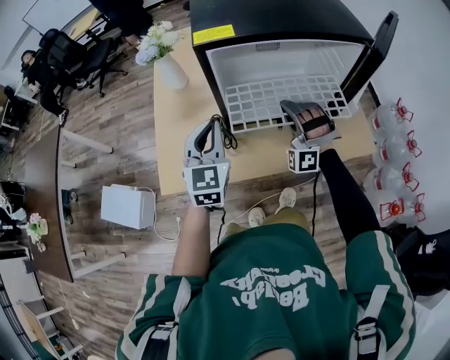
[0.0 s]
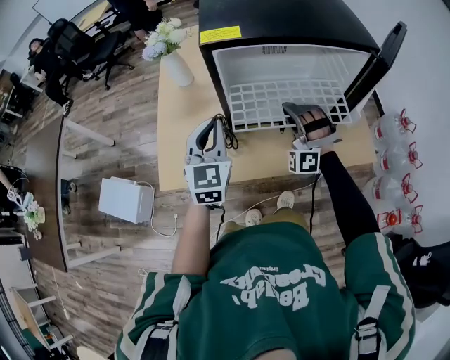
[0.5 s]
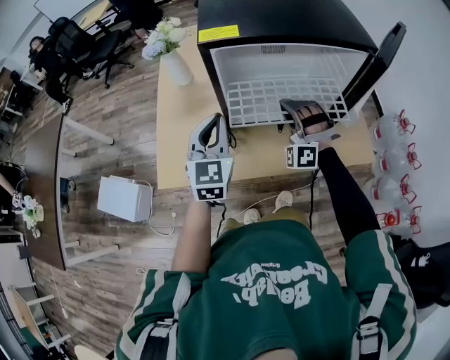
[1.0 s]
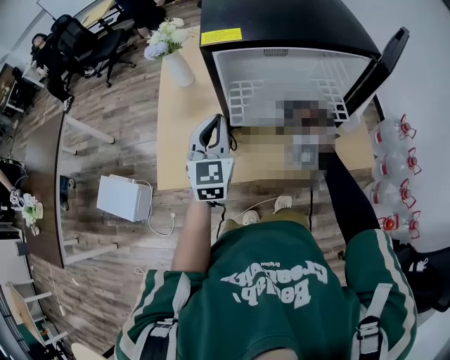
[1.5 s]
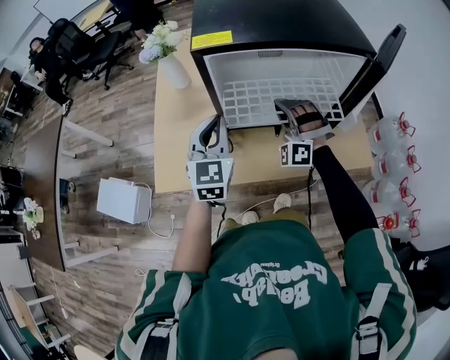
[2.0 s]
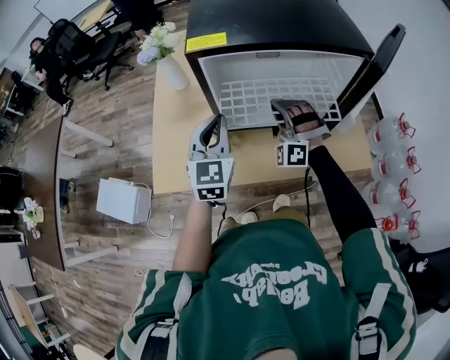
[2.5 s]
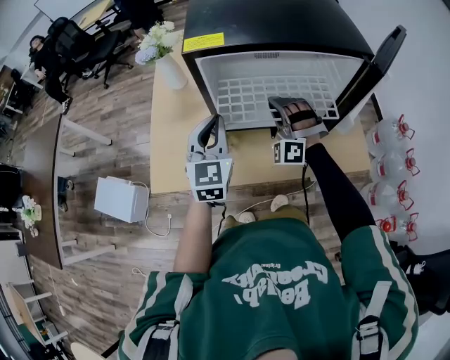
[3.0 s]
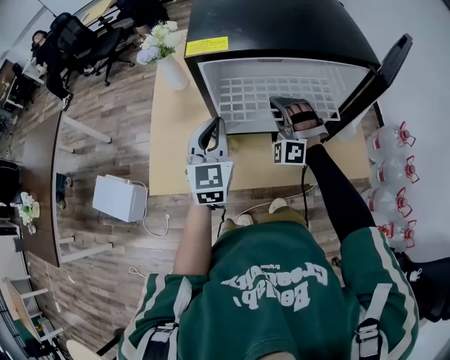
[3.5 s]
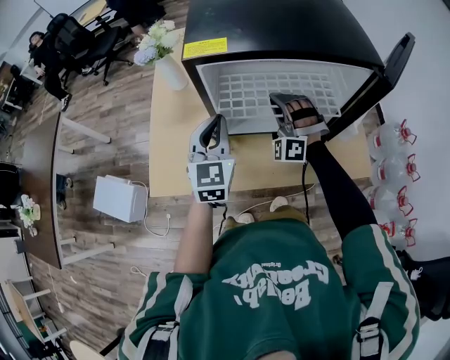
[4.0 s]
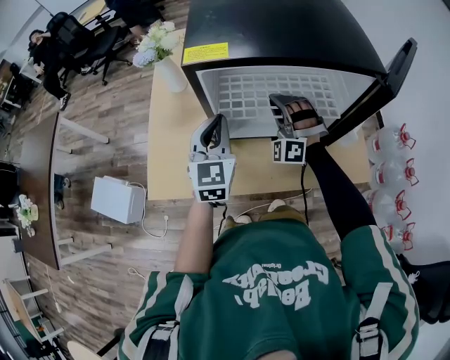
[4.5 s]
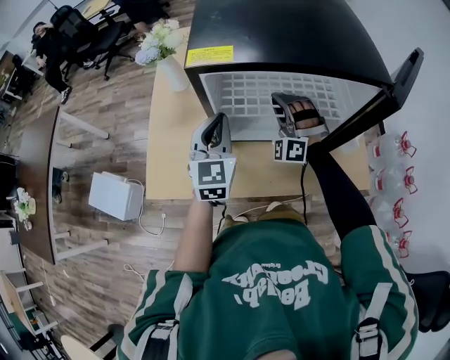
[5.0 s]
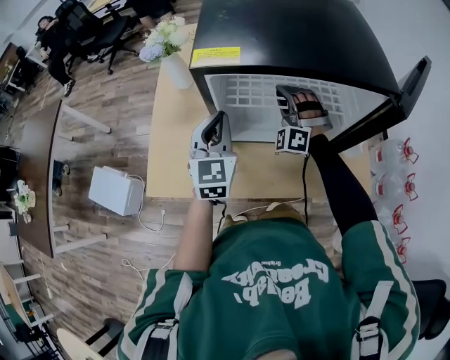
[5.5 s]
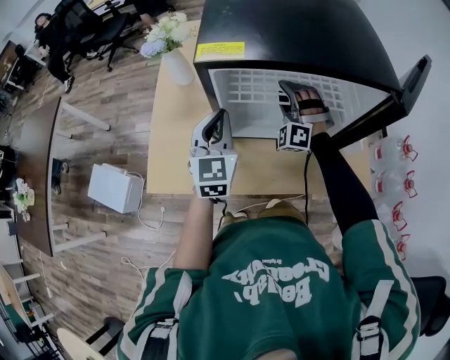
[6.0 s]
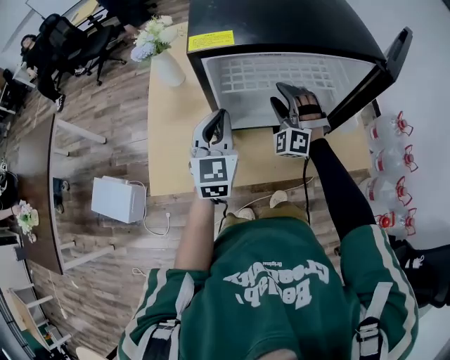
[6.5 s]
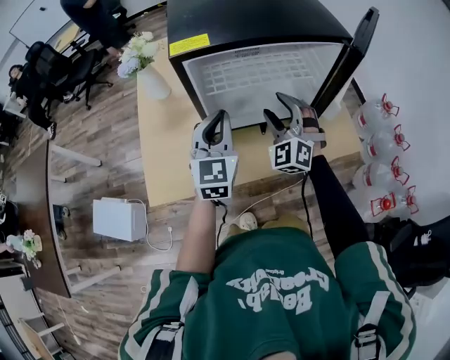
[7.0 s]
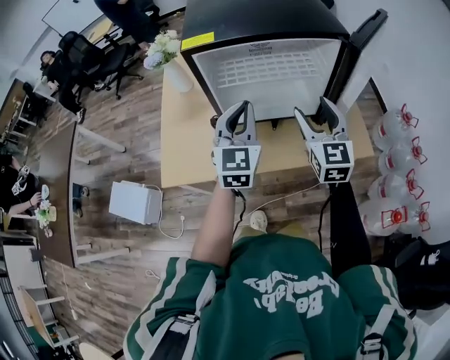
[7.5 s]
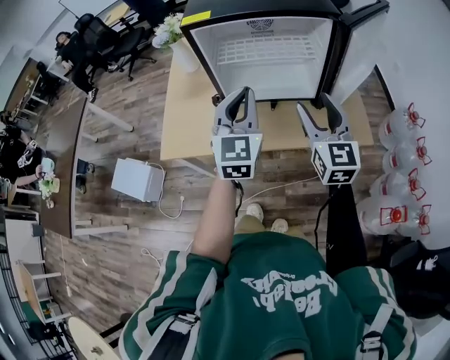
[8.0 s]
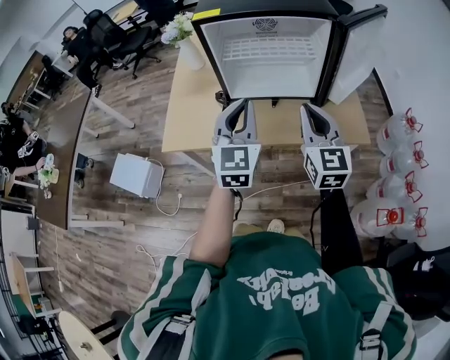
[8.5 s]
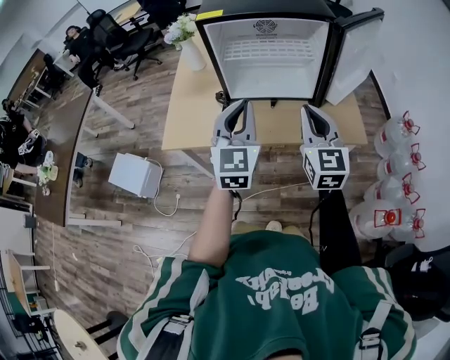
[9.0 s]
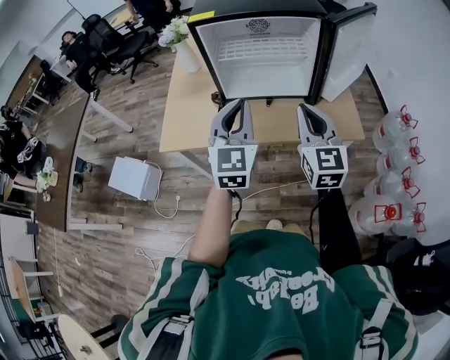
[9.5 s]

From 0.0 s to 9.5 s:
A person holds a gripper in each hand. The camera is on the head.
From 0.0 s to 2.0 s: The grippers move only a little.
From 2.0 s to 4.0 s: The right gripper heads forward, covering about 5 cm.
From 4.0 s to 5.5 s: The right gripper travels forward by some 5 cm.
From 5.5 s to 7.5 s: The right gripper heads backward, to the right and upward, covering roughly 25 cm, twists some 70 degrees clockwise, seen from behind, and opens up. The left gripper travels to the right, backward and upward by roughly 15 cm.
From 7.5 s to 9.5 s: Both grippers travel together backward, roughly 15 cm. The right gripper closes up.

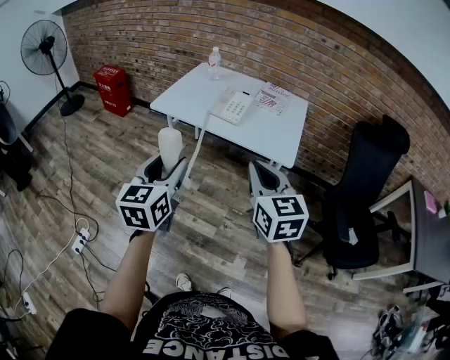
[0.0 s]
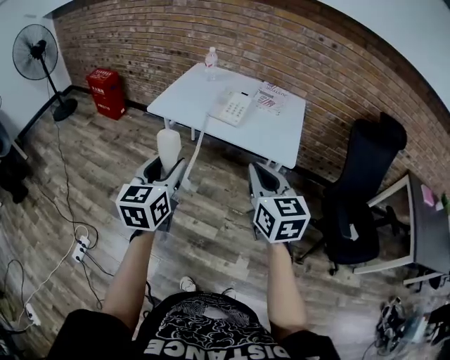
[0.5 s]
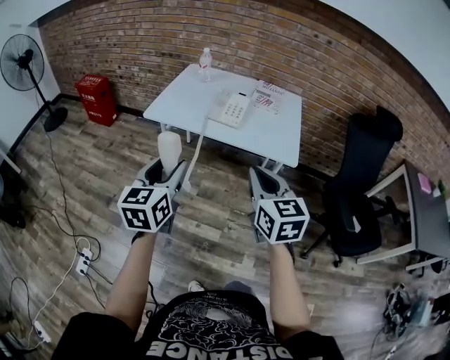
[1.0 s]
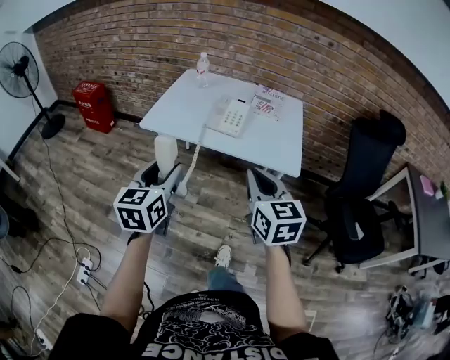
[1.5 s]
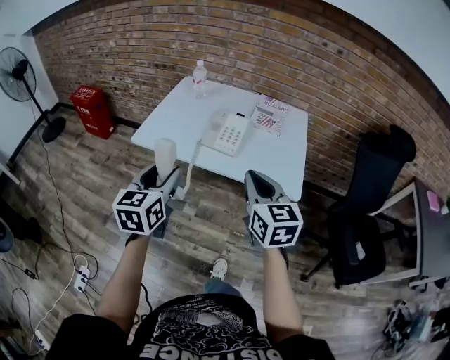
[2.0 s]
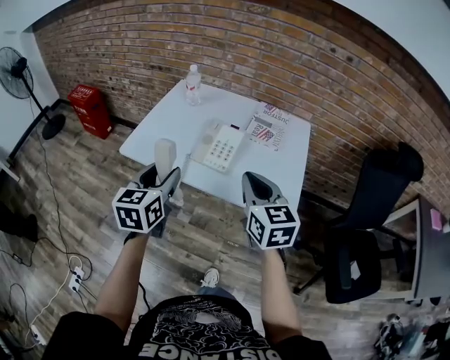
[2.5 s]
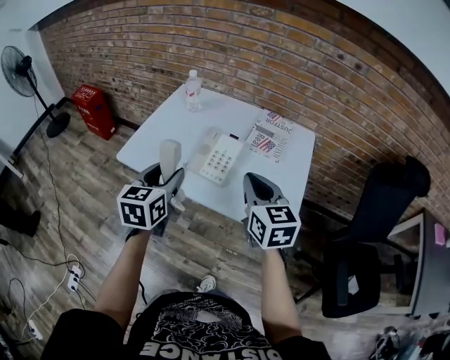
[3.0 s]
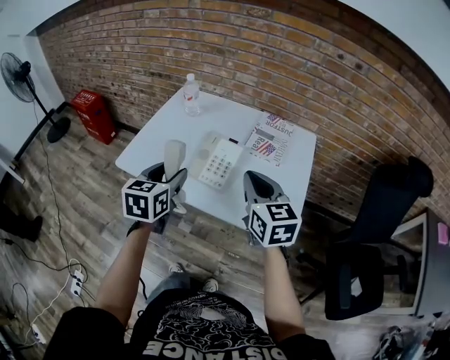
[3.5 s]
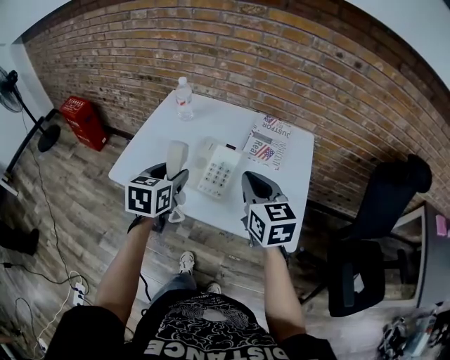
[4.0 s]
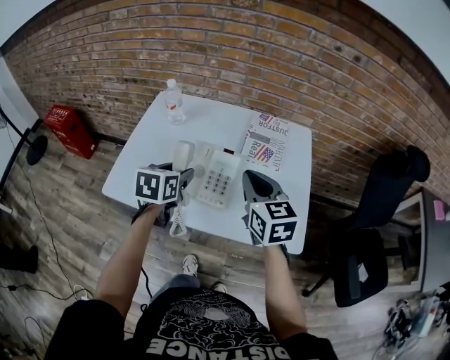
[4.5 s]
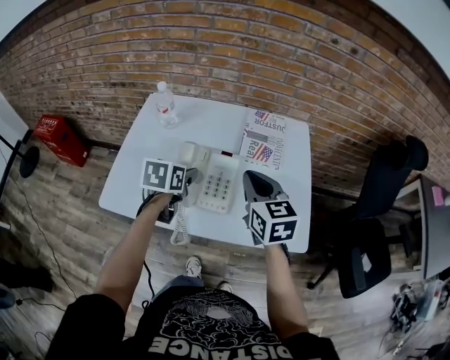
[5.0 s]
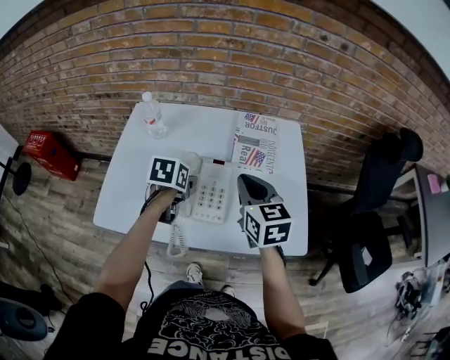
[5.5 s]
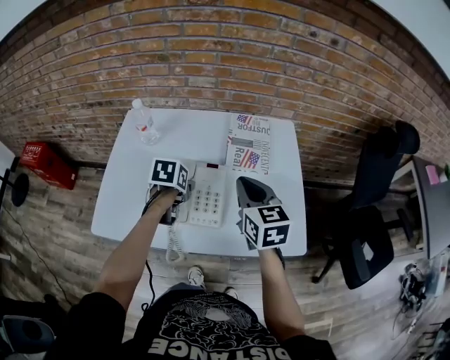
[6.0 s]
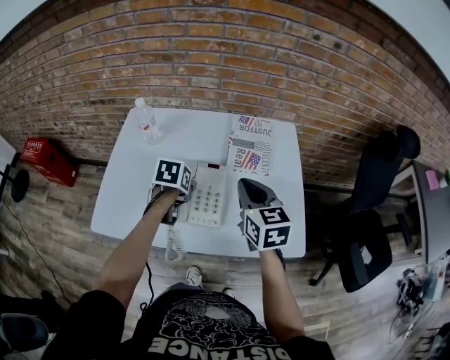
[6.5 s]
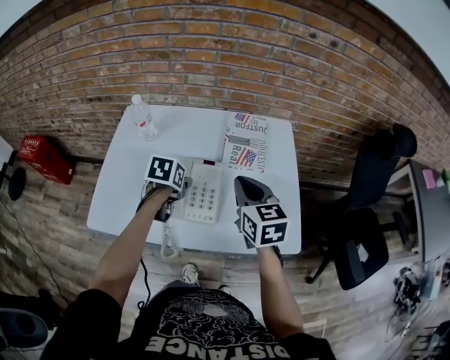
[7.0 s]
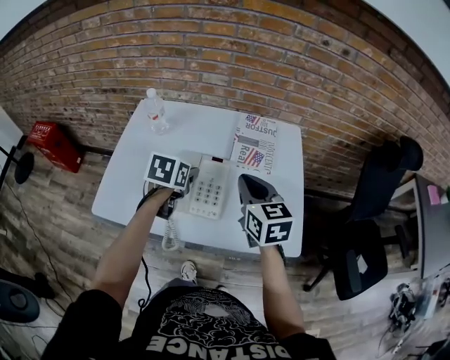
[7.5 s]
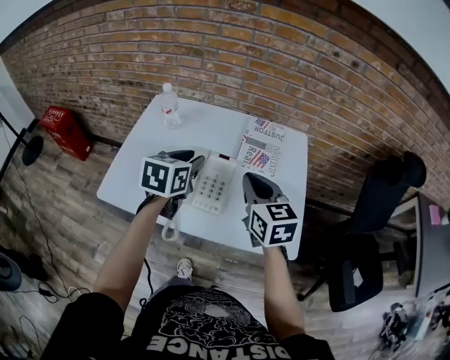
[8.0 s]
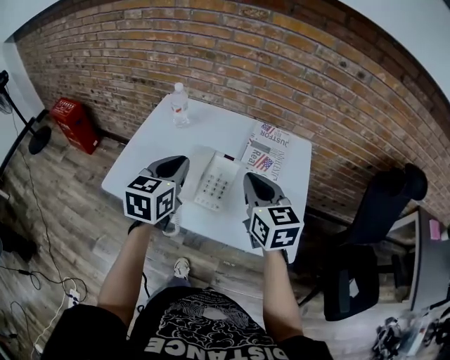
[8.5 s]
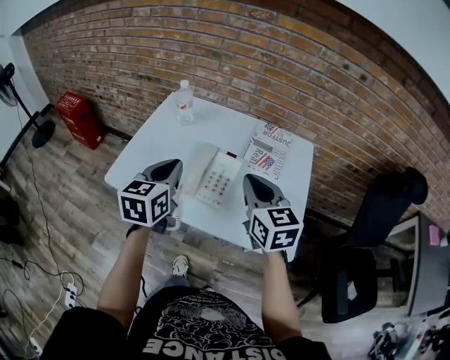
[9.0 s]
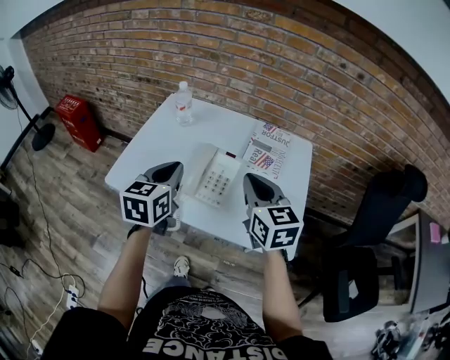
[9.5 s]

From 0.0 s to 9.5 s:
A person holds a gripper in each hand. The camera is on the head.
From 0.0 s to 2.0 s: The two grippers go some 20 cm forward.
From 2.0 s to 4.0 s: Both grippers travel together forward, approximately 25 cm.
From 4.0 s to 5.5 s: The left gripper shifts roughly 20 cm forward and downward, and changes its angle by some 30 degrees. Meanwhile the right gripper heads forward, covering about 10 cm.
From 5.5 s to 7.5 s: The grippers move only a little.
From 7.5 s to 9.5 s: The left gripper heads backward, upward and to the left, covering roughly 20 cm, swivels approximately 30 degrees, and closes its fingers, while the right gripper heads backward, covering approximately 5 cm.

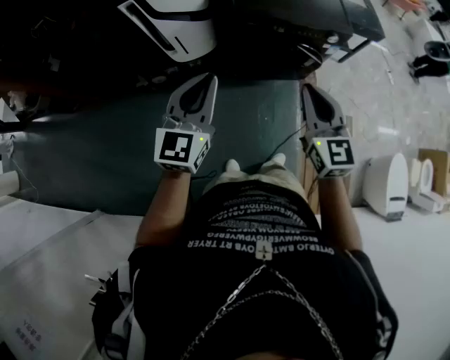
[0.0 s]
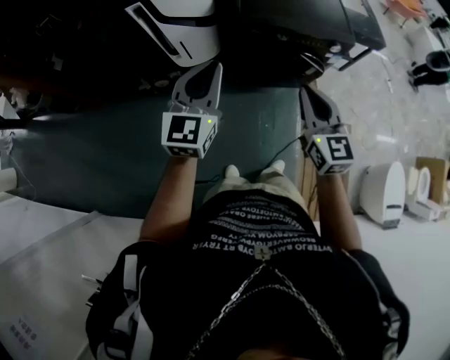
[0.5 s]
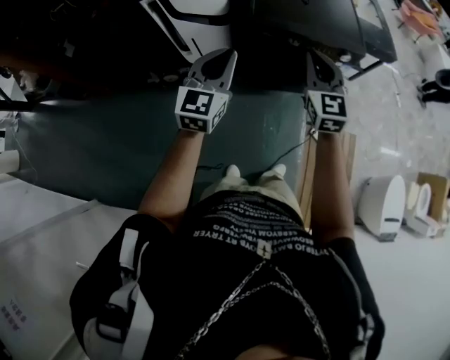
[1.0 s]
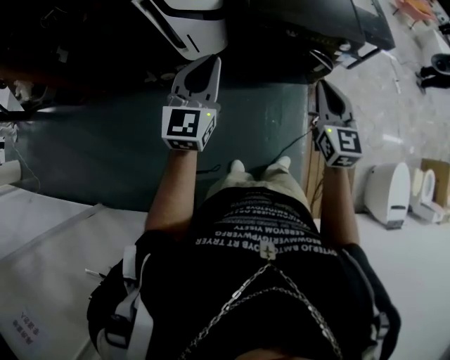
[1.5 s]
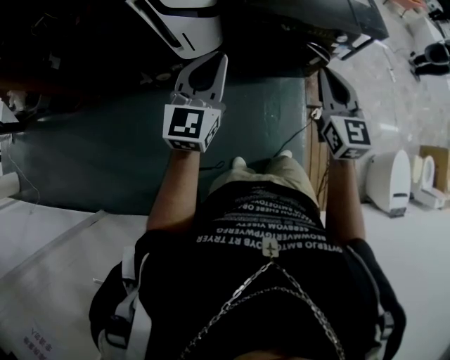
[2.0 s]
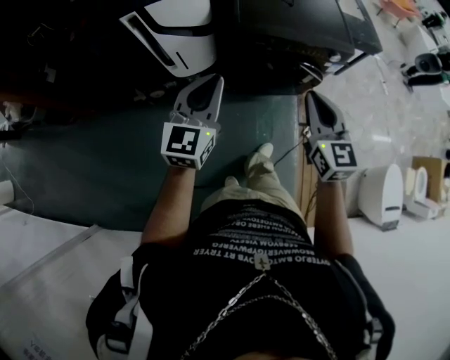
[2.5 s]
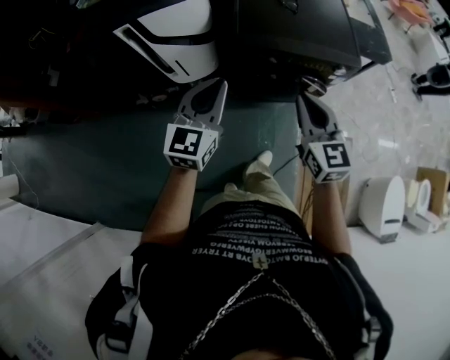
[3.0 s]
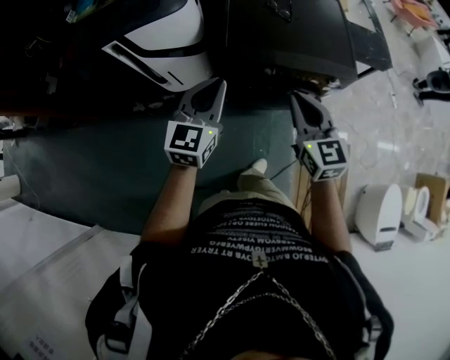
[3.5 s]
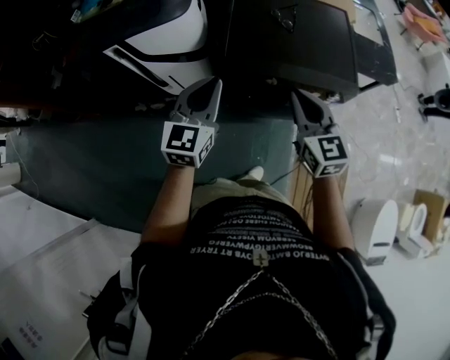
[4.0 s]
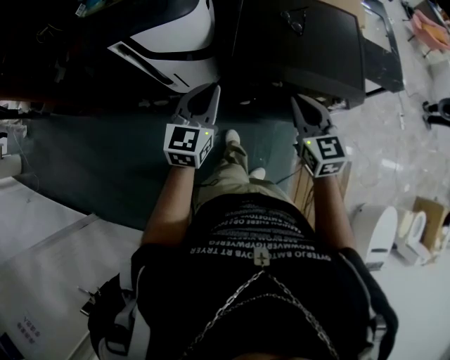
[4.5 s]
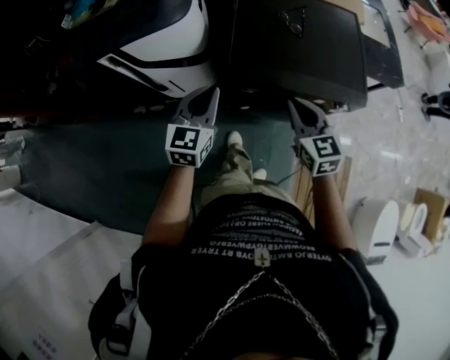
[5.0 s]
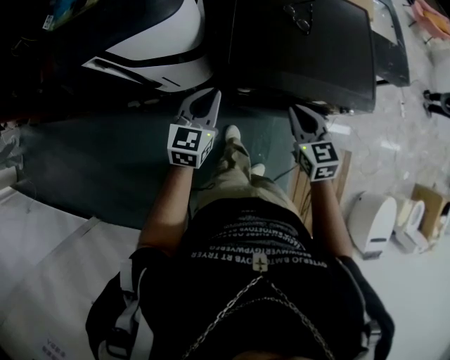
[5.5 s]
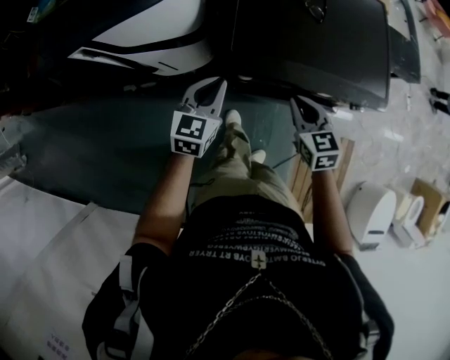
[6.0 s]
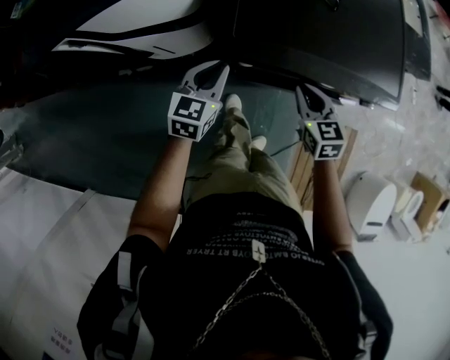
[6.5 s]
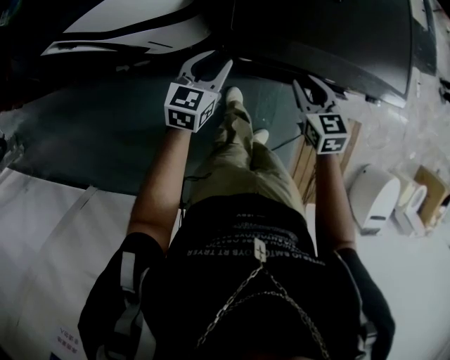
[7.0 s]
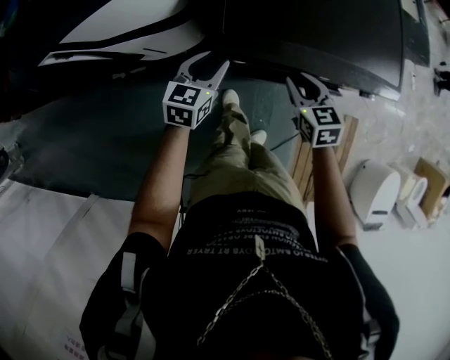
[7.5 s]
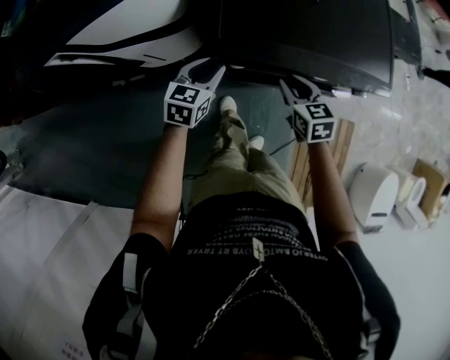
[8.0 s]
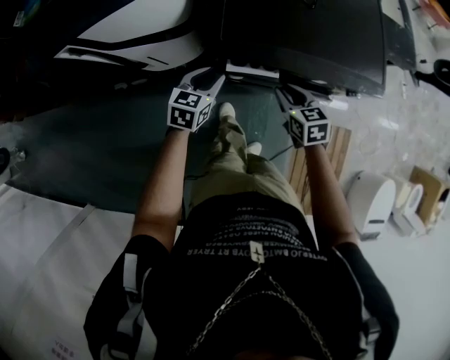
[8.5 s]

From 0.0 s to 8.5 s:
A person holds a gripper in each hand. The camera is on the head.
From 0.0 s to 2.0 s: The right gripper reaches approximately 15 cm forward, then returns.
From 2.0 s to 4.0 s: The right gripper travels forward by about 25 cm. The left gripper travels forward and to the right by about 25 cm.
From 4.0 s to 6.5 s: Both grippers move downward and forward, roughly 30 cm. The left gripper swivels roughly 20 degrees. Meanwhile the right gripper rotates roughly 20 degrees.
From 6.5 s to 8.5 s: The left gripper opens its fingers.
